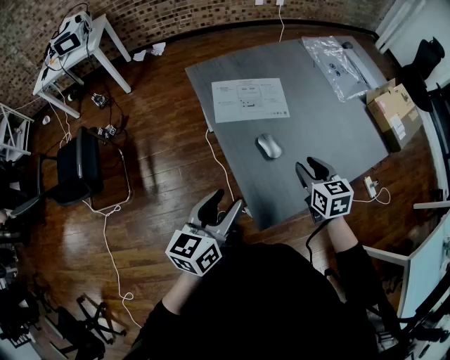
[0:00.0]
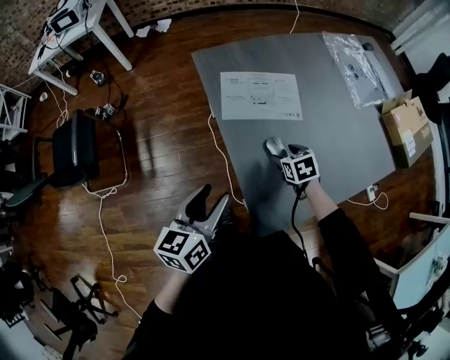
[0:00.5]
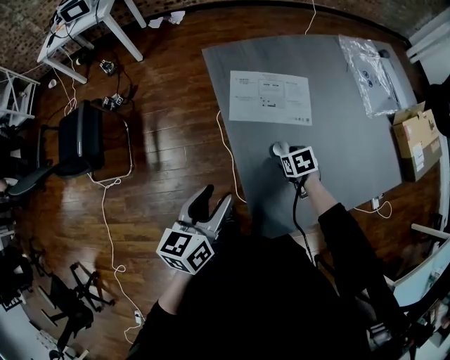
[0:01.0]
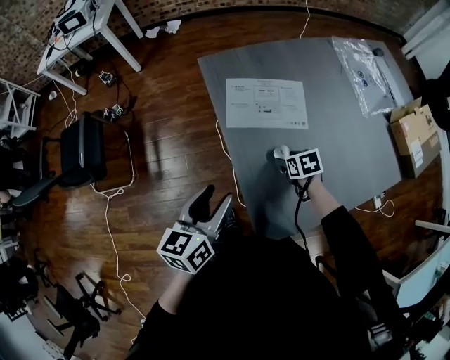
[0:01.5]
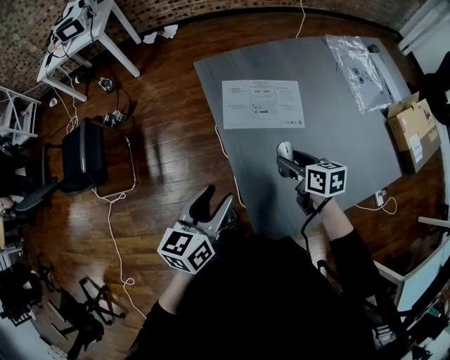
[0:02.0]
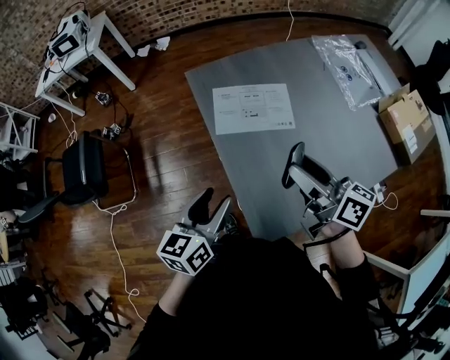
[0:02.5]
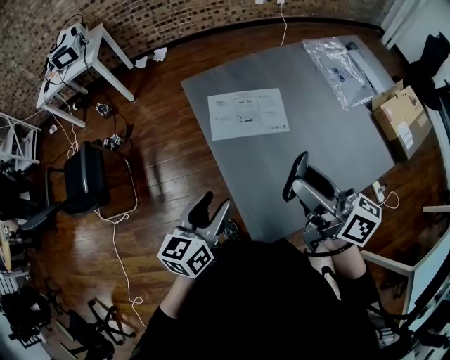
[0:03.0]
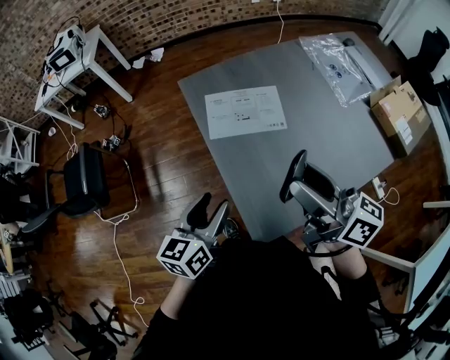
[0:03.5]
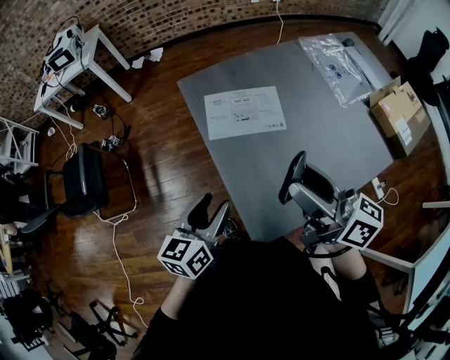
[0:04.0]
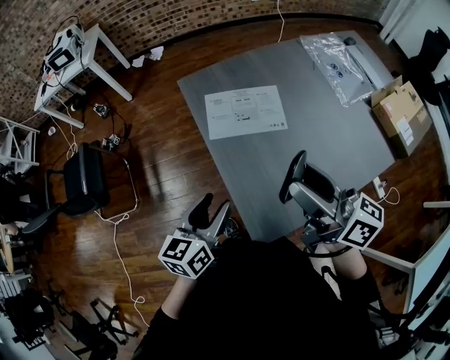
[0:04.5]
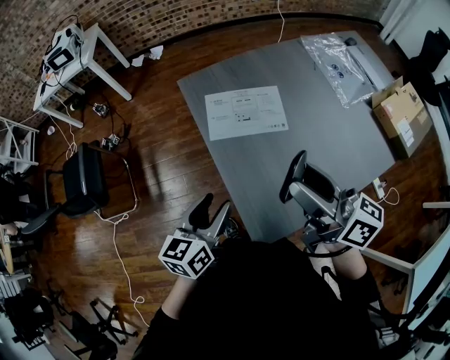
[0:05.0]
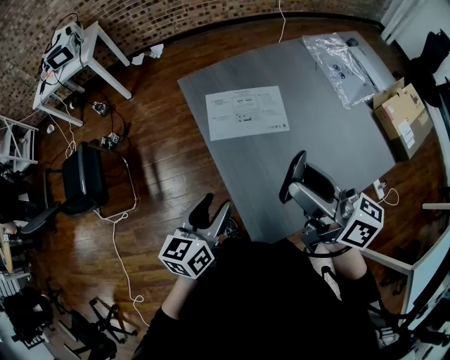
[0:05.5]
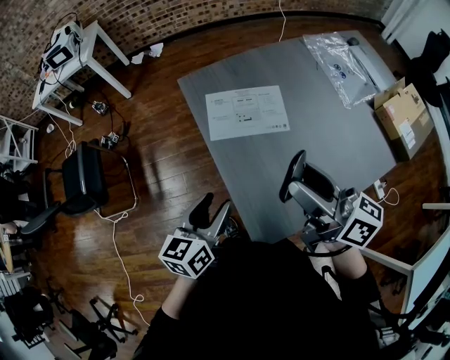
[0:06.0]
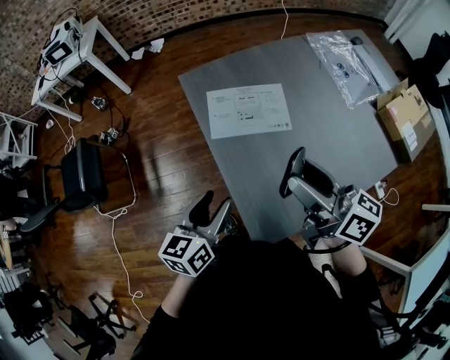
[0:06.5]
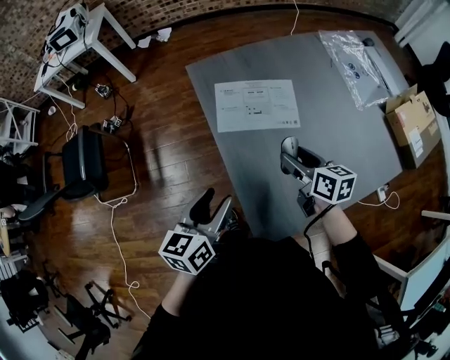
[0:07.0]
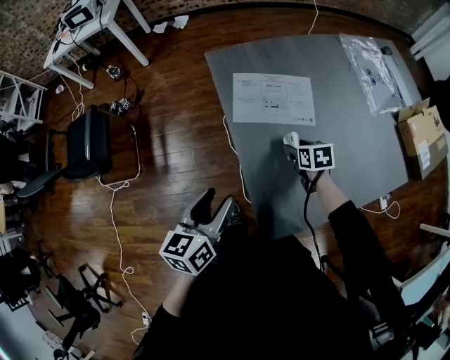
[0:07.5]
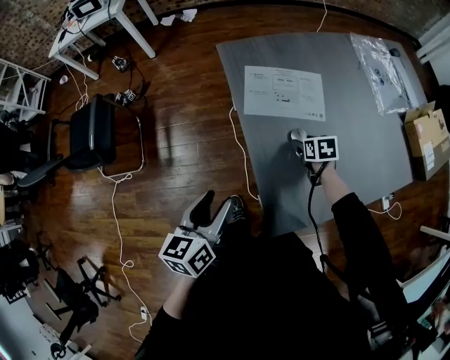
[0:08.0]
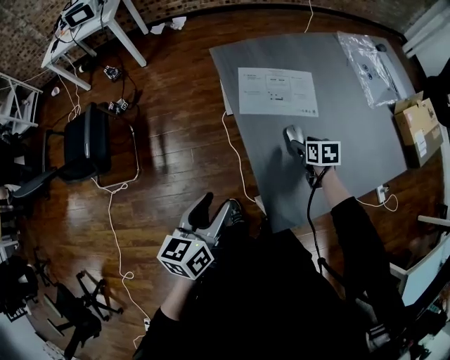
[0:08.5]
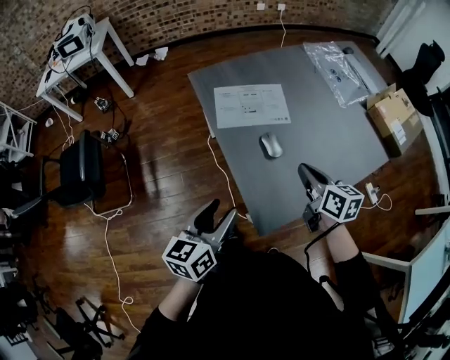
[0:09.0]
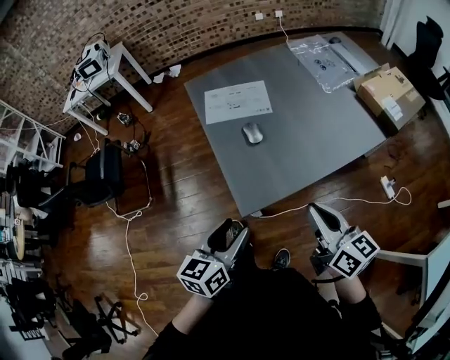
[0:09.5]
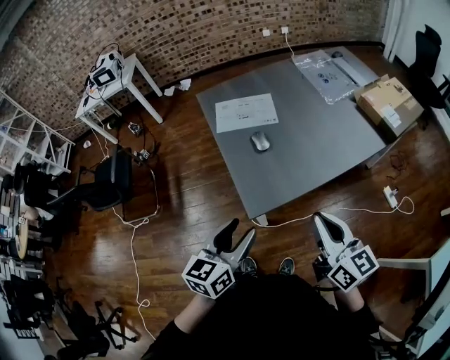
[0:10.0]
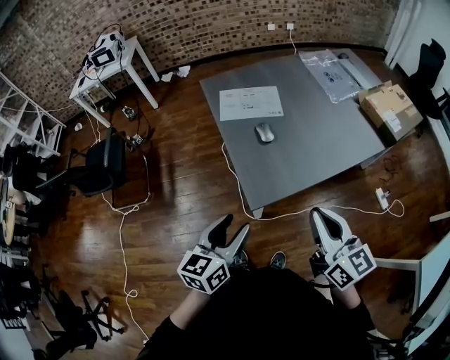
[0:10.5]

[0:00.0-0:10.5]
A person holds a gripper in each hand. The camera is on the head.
0:00.0 to 0:02.0: The right gripper shifts about 15 cm forward and to the left, moves approximately 20 cm downward and comes back, and swivels roughly 30 degrees; the left gripper moves forward, about 10 cm.
0:02.0 to 0:04.0: The right gripper is displaced upward by roughly 25 cm, and points its fingers roughly 40 degrees further upward.
0:04.0 to 0:06.5: There are only small adjustments of the grippers.
0:06.5 to 0:08.5: The right gripper is displaced downward by approximately 35 cm, and tips its fingers downward by approximately 60 degrees; the left gripper travels to the left and backward by some 10 cm.
0:08.5 to 0:10.5: The right gripper shifts some 50 cm backward and upward, points its fingers roughly 50 degrees further upward, and closes its fingers; the left gripper heads backward and to the right, covering about 25 cm.

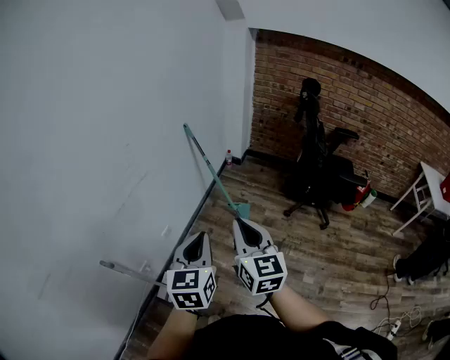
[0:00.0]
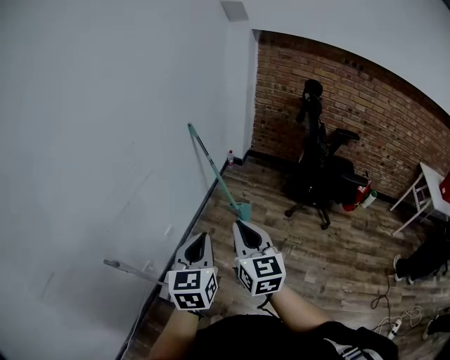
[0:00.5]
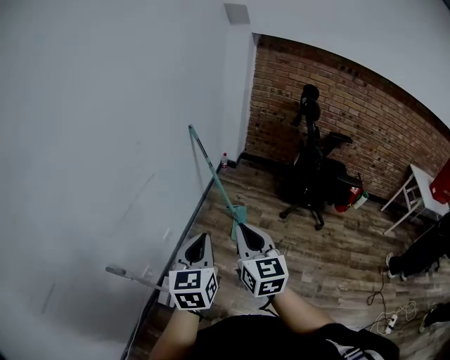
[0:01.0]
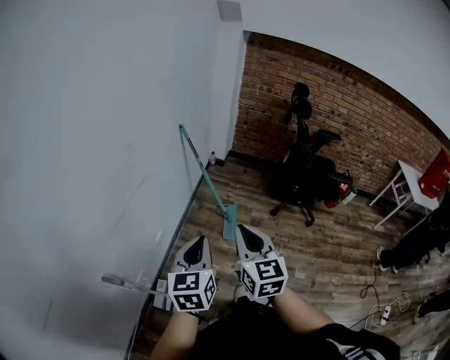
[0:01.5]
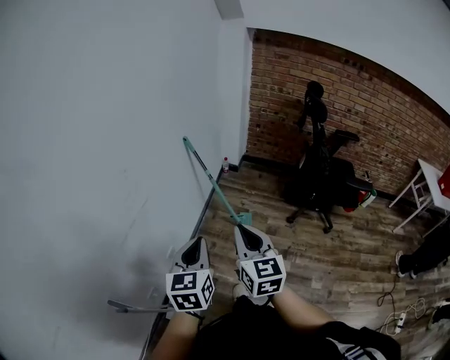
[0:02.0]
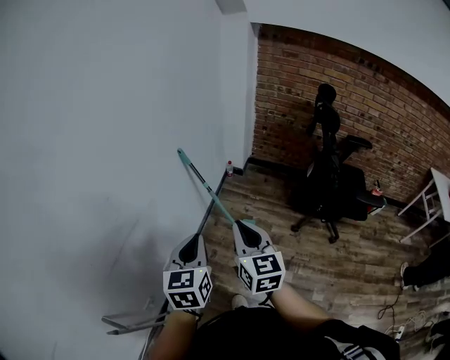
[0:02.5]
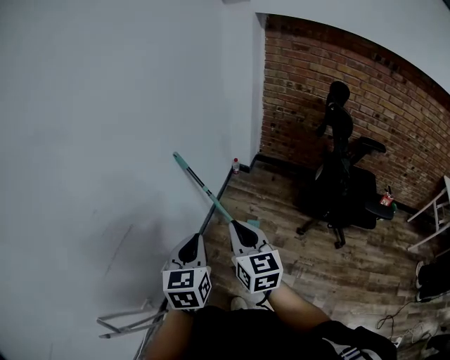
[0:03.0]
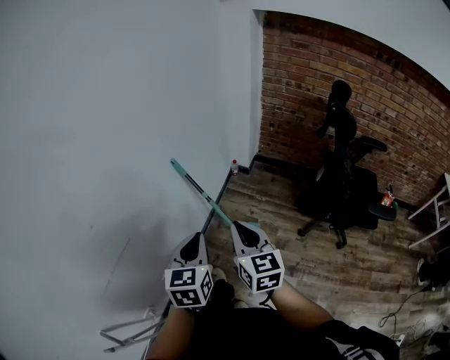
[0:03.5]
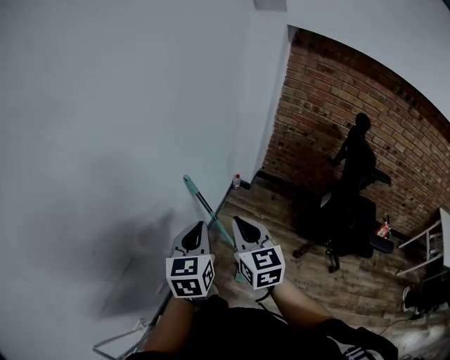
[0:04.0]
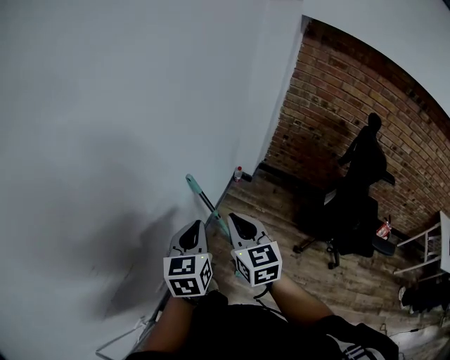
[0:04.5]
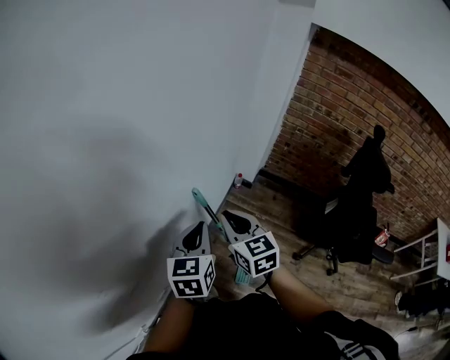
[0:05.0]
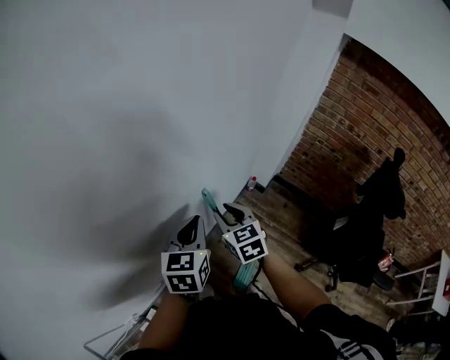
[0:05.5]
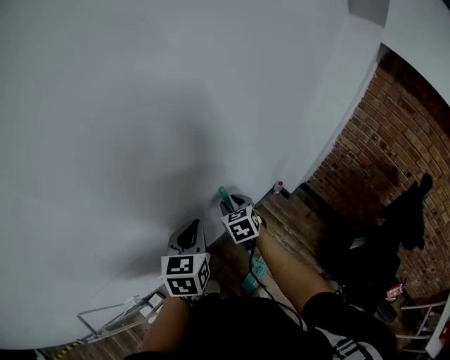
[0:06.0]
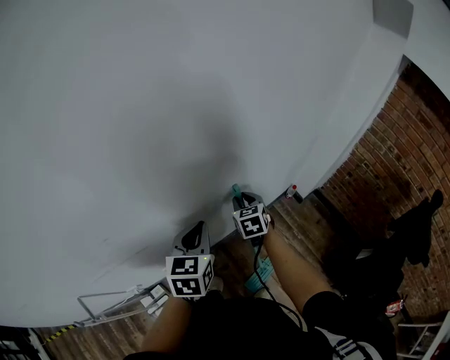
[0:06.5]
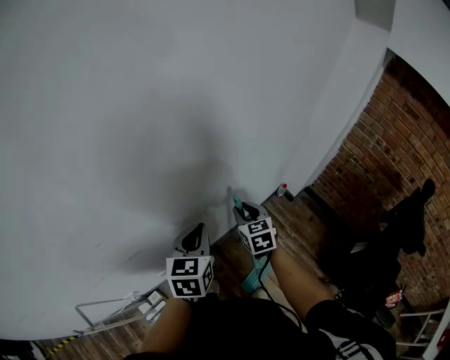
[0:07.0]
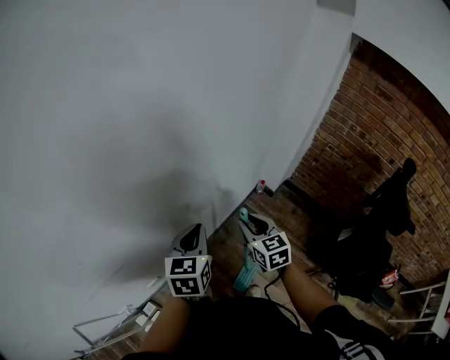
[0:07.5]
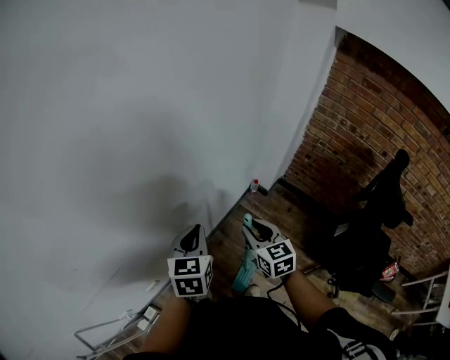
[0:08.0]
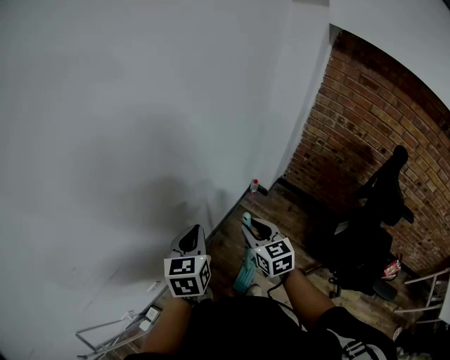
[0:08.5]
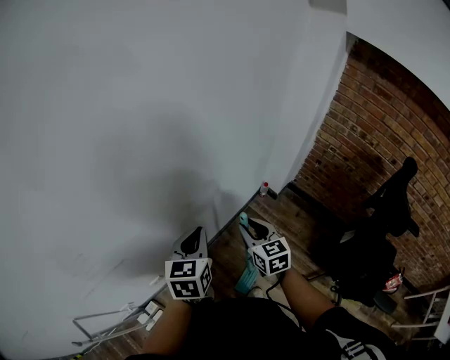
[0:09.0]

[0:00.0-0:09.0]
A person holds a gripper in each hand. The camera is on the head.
0:00.0 to 0:02.0: The grippers both shift forward and to the left by roughly 15 cm.
0:02.0 to 0:04.5: The grippers both shift forward by some 40 cm.
0:04.5 to 0:07.0: The right gripper moves forward and downward, approximately 20 cm, rotates approximately 30 degrees, and opens; the left gripper moves roughly 5 cm, and changes its angle by roughly 20 degrees.
0:07.0 to 0:09.0: The left gripper shifts approximately 10 cm to the right; the right gripper heads to the right and backward, covering approximately 15 cm.

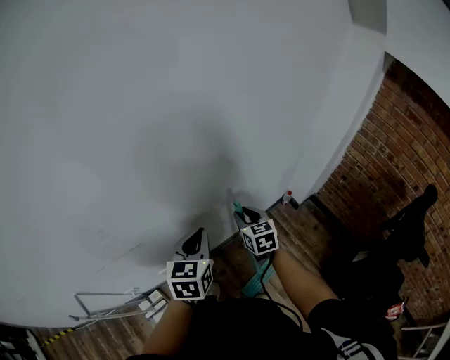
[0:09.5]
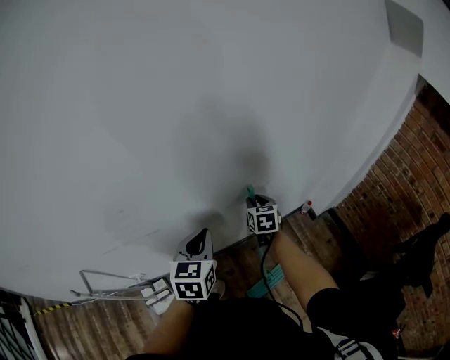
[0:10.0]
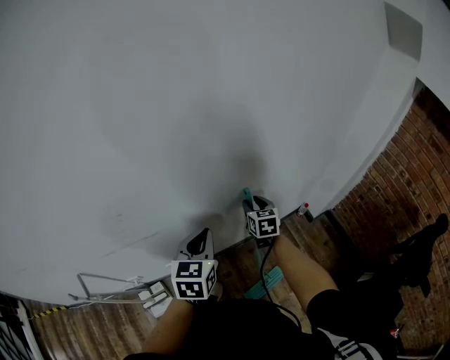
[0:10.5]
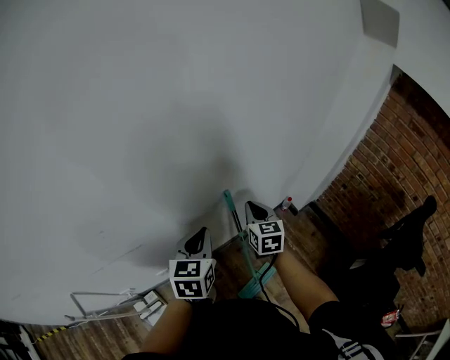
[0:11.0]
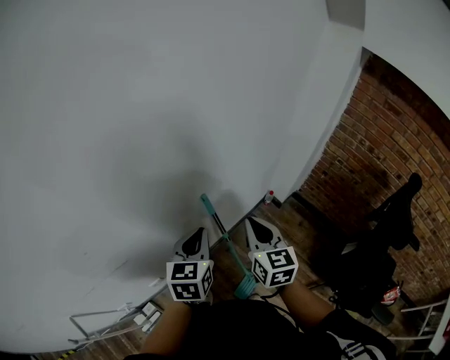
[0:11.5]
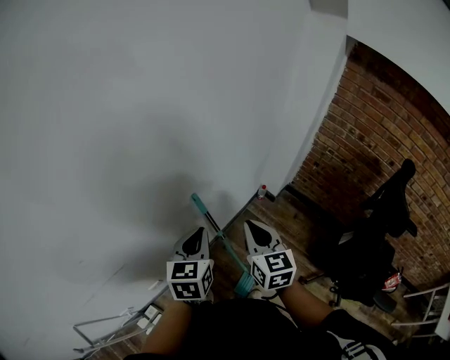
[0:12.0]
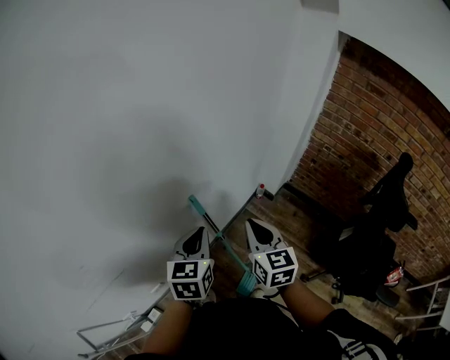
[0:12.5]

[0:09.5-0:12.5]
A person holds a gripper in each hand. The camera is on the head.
0:09.5 to 0:11.0: The right gripper closes up.
0:11.0 to 0:12.5: The left gripper goes some 10 cm to the right; the right gripper is displaced backward, to the right and upward by some 15 cm.

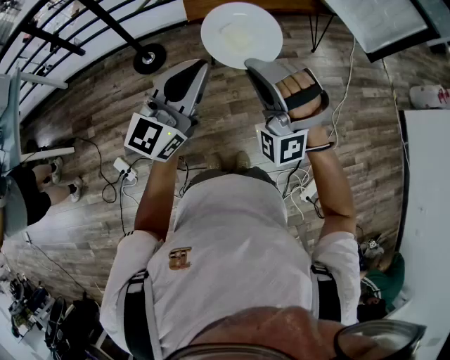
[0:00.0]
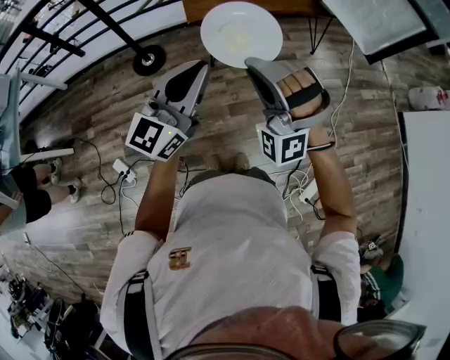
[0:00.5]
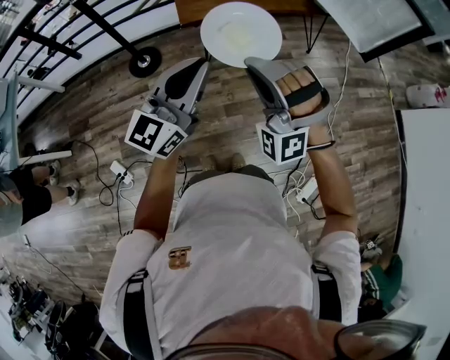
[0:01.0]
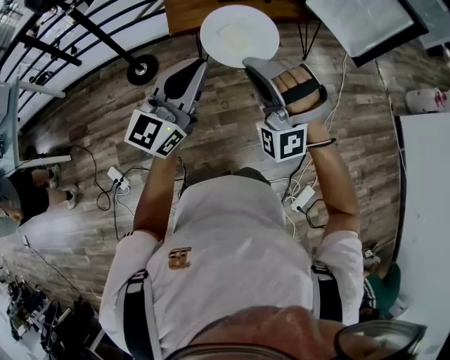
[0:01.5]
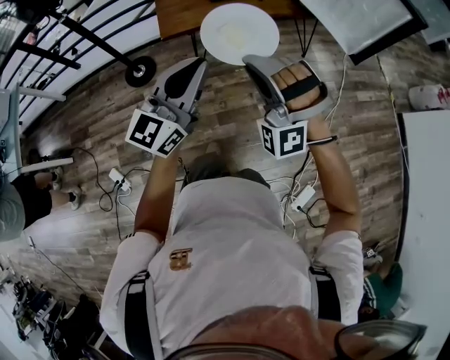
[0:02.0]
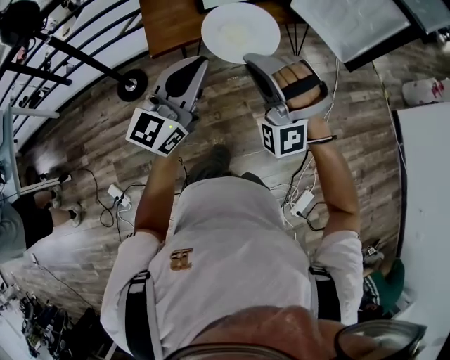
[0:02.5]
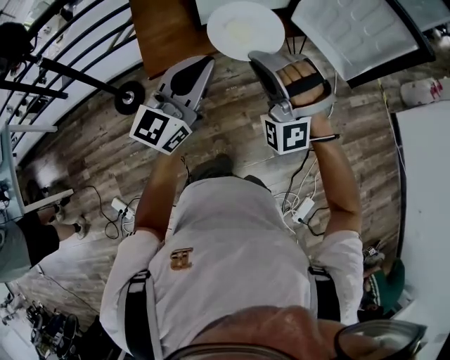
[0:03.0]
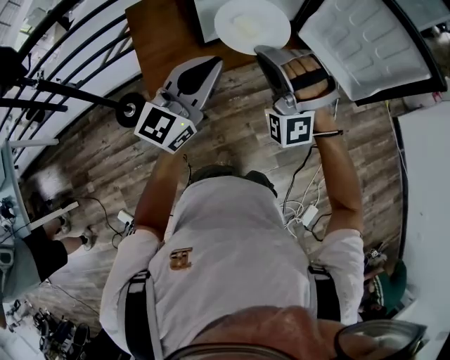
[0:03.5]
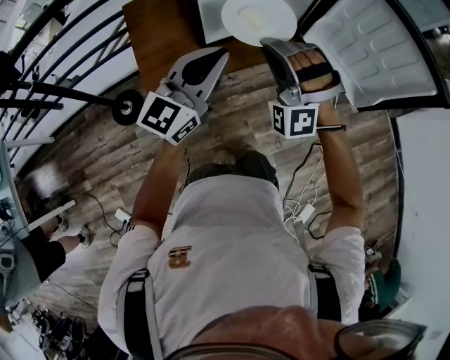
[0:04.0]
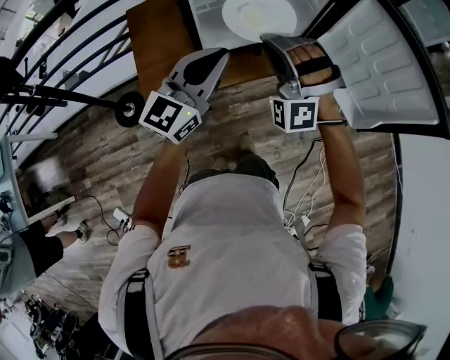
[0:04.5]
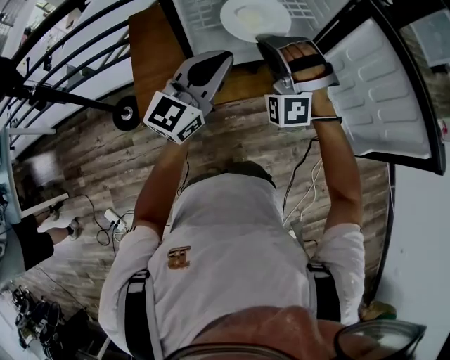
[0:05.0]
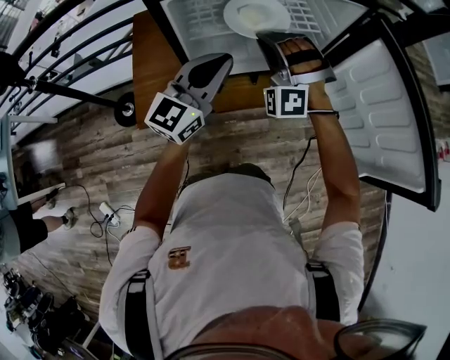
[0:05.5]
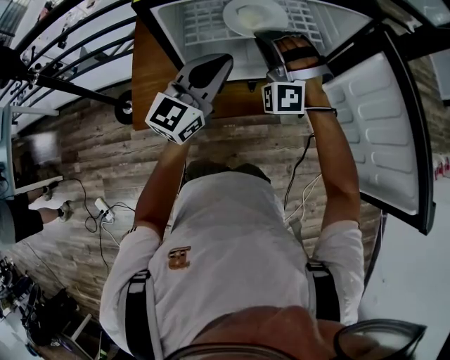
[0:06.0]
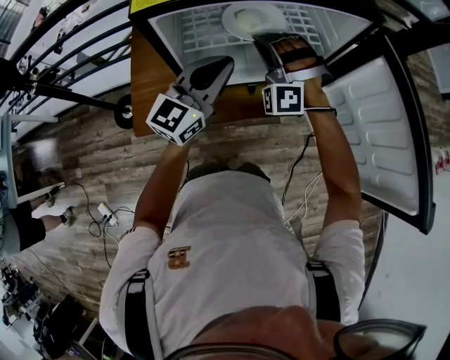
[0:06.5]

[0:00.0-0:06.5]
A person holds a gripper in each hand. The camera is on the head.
0:00.0 to 0:02.0: The left gripper ends up about 15 cm from where it was.
0:02.0 to 0:04.5: The left gripper ends up approximately 40 cm from where it was.
0:04.5 to 0:06.5: The left gripper shifts by roughly 15 cm.
